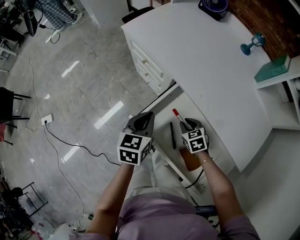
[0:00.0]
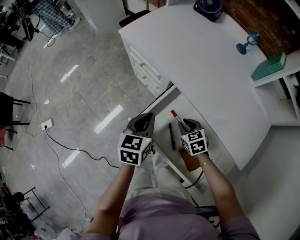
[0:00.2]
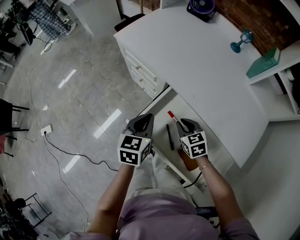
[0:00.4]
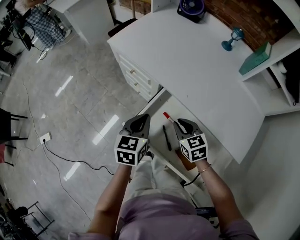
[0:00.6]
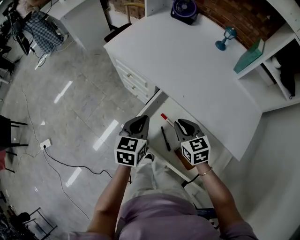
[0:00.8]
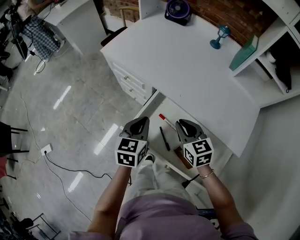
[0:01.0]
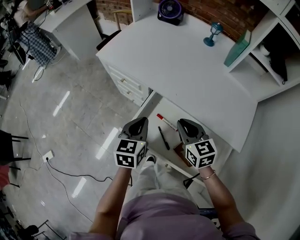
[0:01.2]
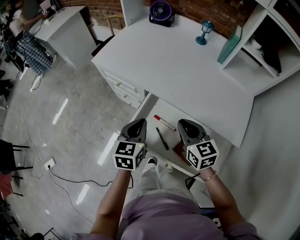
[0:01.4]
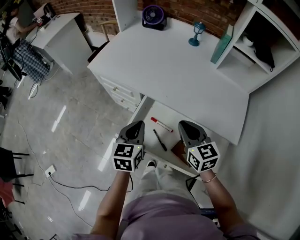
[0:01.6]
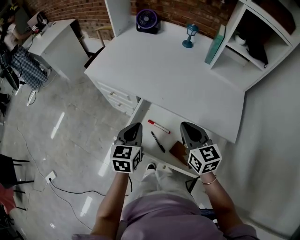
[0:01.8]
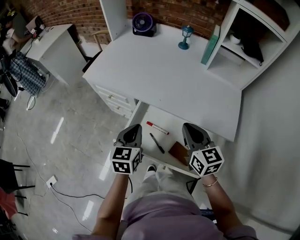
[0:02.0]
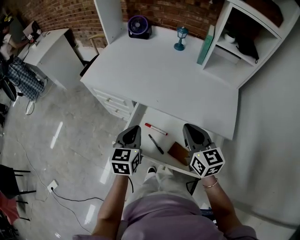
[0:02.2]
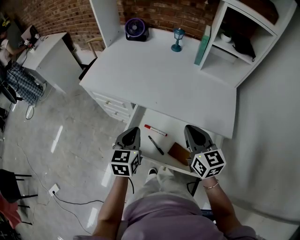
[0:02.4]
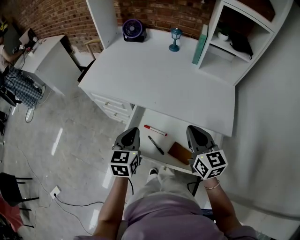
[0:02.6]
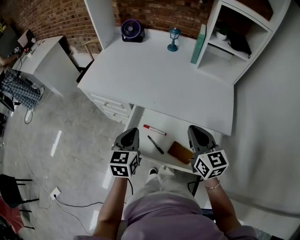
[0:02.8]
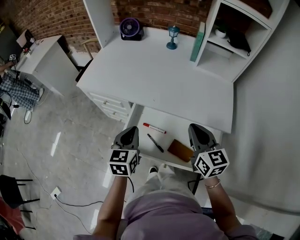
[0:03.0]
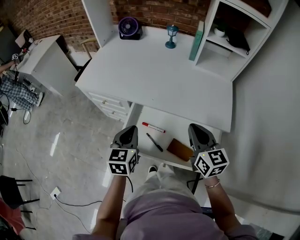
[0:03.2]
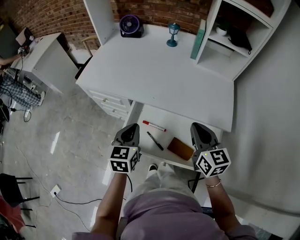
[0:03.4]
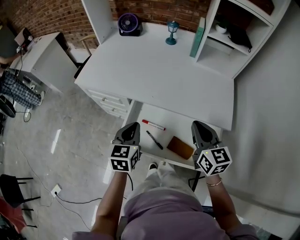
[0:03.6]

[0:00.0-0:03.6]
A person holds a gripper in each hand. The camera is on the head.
0.0 to 1.8 s: The right gripper moves upward, approximately 25 cm, points its fingers approximately 40 degrees further upward, and closes its fingers; the left gripper heads upward and to the right, covering some 10 cm.
1.8 to 3.6 s: The right gripper is displaced to the right by roughly 5 cm.

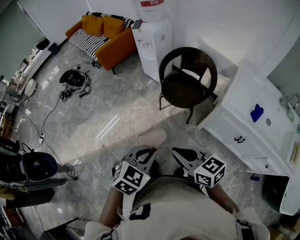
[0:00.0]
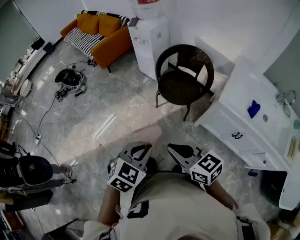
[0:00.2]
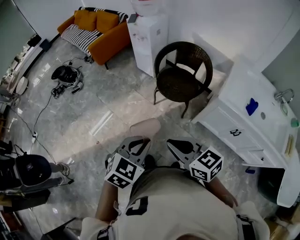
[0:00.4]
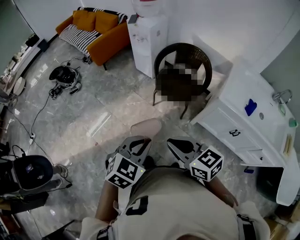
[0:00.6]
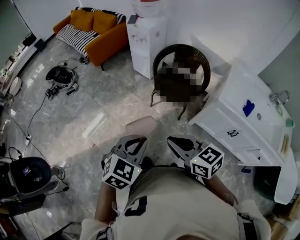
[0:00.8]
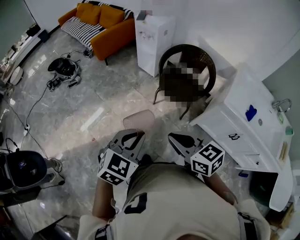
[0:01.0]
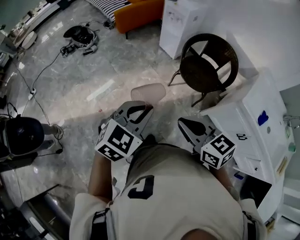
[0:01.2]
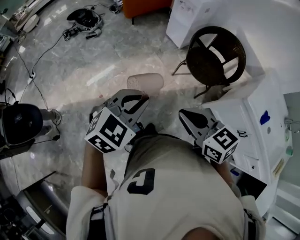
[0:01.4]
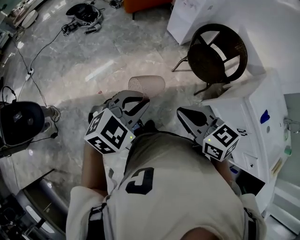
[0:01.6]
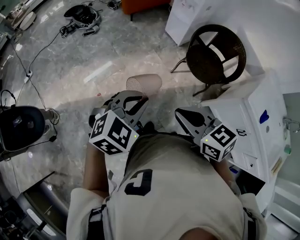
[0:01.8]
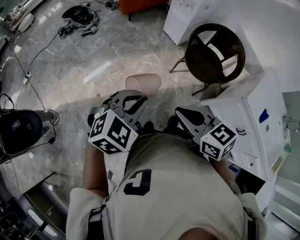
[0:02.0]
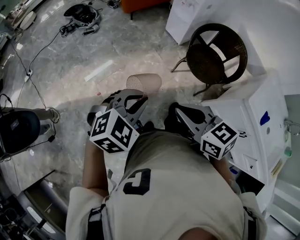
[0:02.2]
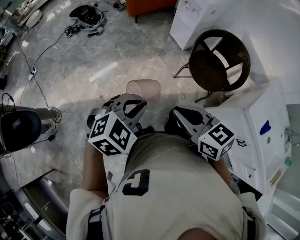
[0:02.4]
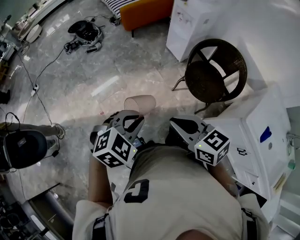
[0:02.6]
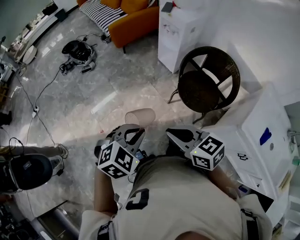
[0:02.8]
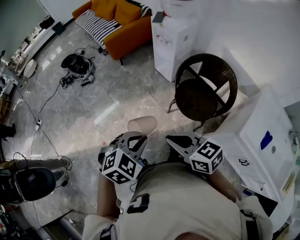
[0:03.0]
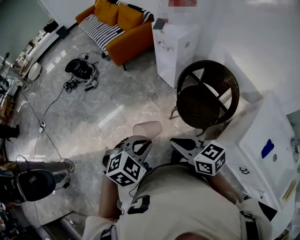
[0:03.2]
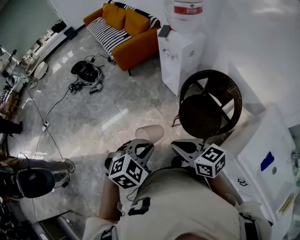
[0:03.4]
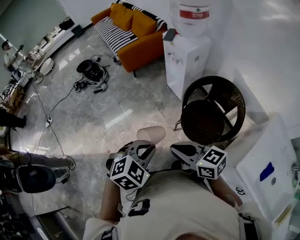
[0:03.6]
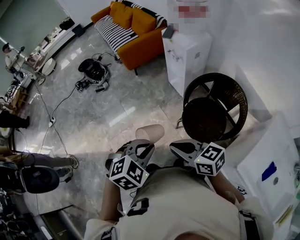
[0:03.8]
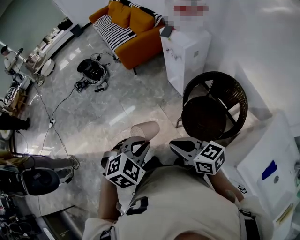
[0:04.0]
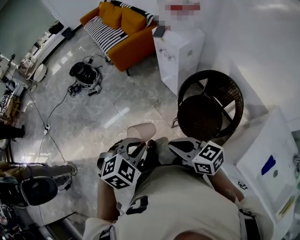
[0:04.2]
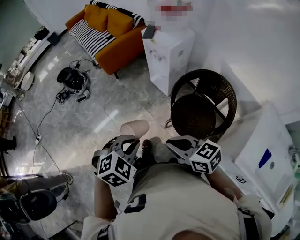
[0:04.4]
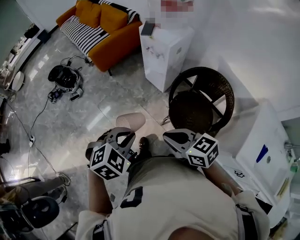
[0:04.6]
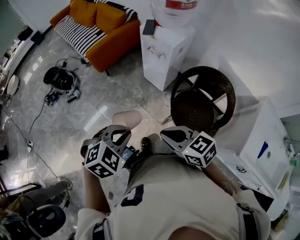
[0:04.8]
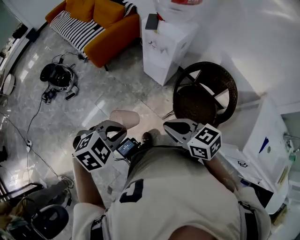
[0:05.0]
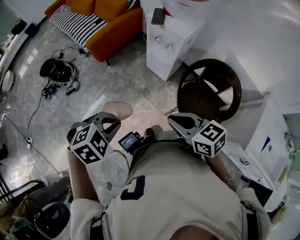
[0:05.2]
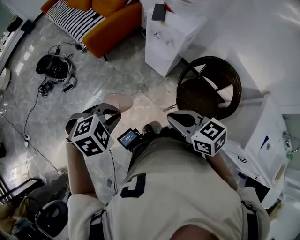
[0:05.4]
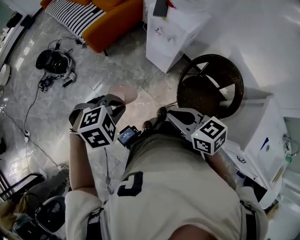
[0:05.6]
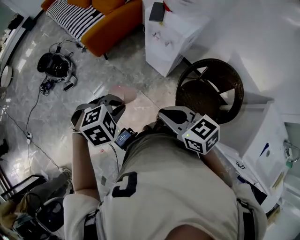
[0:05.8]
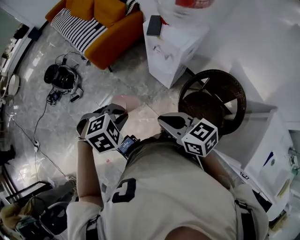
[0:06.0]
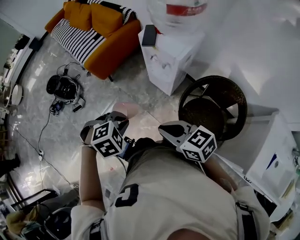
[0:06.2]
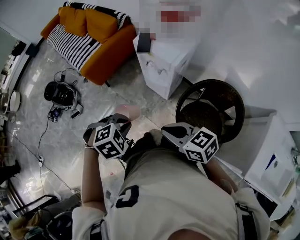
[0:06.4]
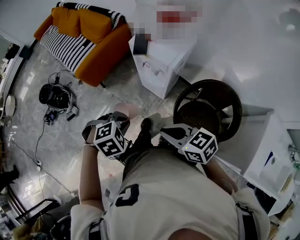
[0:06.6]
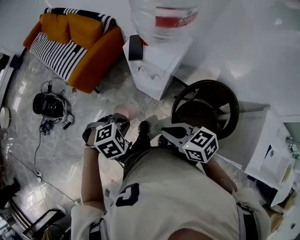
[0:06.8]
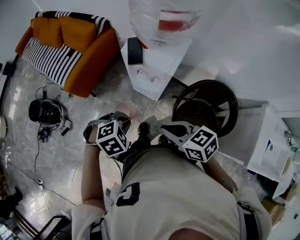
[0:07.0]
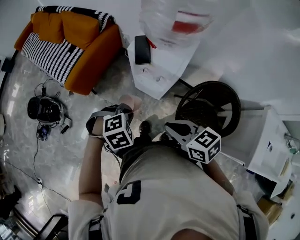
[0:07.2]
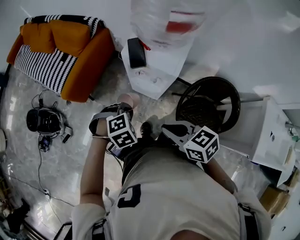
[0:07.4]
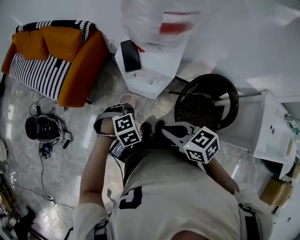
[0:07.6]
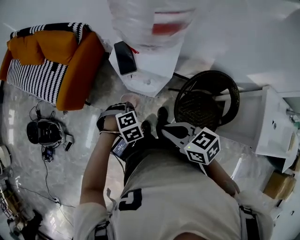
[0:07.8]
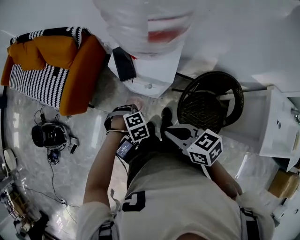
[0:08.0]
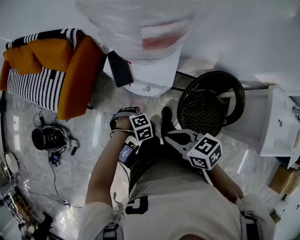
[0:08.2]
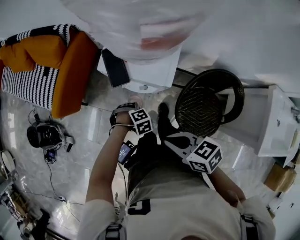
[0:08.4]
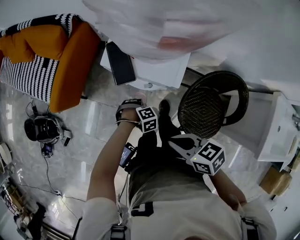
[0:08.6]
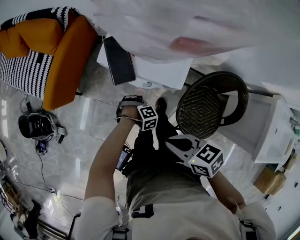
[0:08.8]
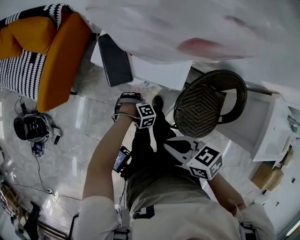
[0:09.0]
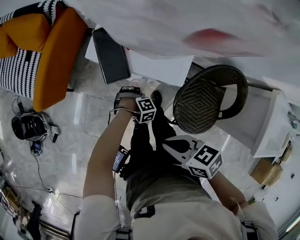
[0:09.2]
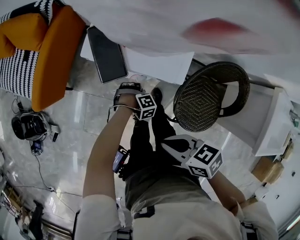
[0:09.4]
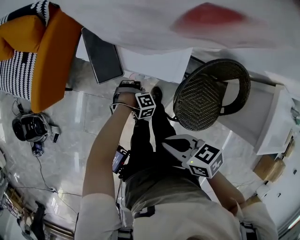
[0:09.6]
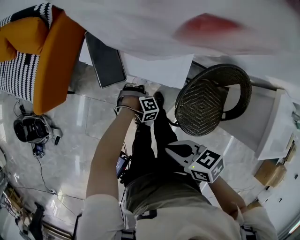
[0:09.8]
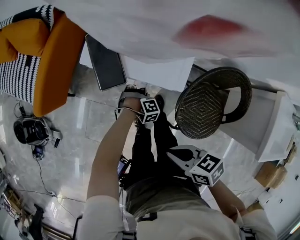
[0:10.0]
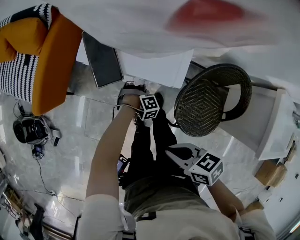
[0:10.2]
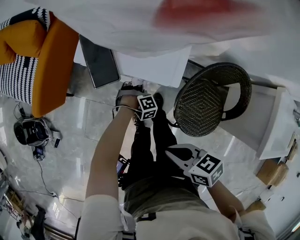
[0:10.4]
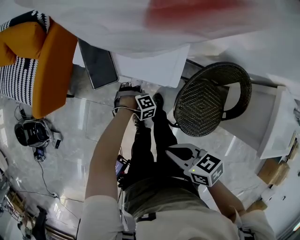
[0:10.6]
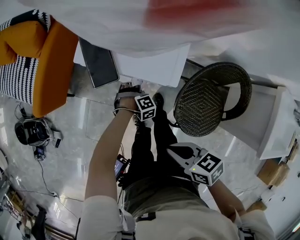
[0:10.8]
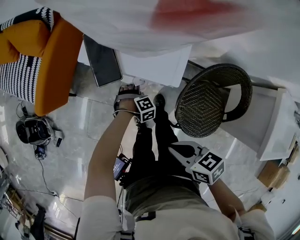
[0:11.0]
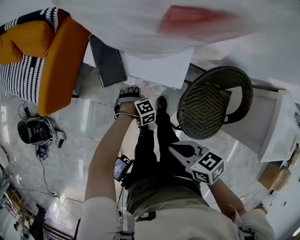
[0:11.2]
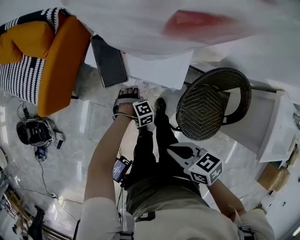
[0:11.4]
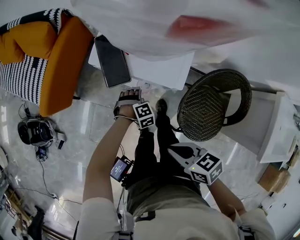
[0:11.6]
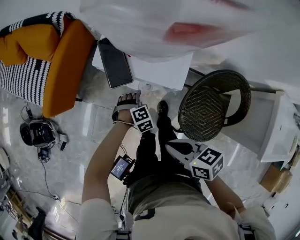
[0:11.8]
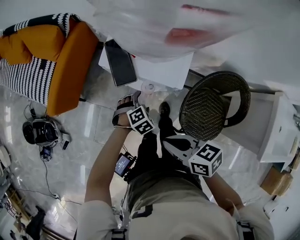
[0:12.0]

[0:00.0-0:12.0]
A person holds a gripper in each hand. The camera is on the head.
0.0 to 1.6 s: Both grippers move to the left, some 20 cm.
1.6 to 3.0 s: The grippers both shift forward and to the right by some 20 cm.
3.0 to 4.4 s: The right gripper goes roughly 15 cm forward and to the right. The left gripper is displaced forward by roughly 15 cm.
4.4 to 6.0 s: The two grippers go approximately 30 cm forward and to the left. The left gripper changes its angle by approximately 20 degrees.
6.0 to 7.6 s: The right gripper heads forward, covering some 20 cm, and swivels approximately 20 degrees, while the left gripper shifts roughly 30 cm forward and downward, and turns by approximately 30 degrees.
7.6 to 9.0 s: The right gripper travels downward by some 10 cm, while the left gripper travels downward by some 30 cm, and changes its angle by approximately 20 degrees.
9.0 to 10.4 s: The right gripper ends up approximately 5 cm from where it was. Meanwhile the left gripper shifts by about 5 cm.
10.4 to 12.0 s: The left gripper goes approximately 15 cm upward, rotates roughly 40 degrees, and opens up; the right gripper shifts by some 10 cm.

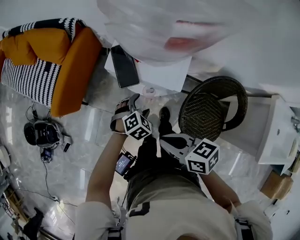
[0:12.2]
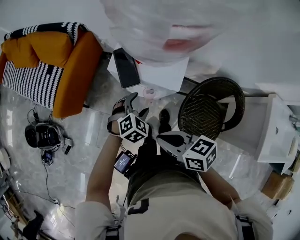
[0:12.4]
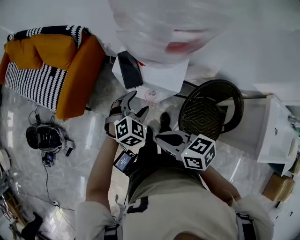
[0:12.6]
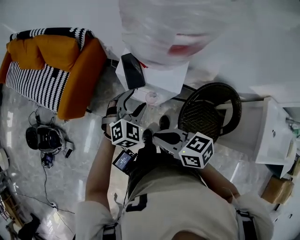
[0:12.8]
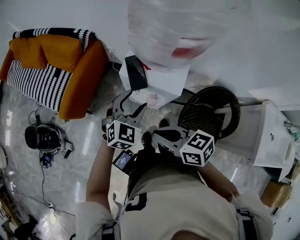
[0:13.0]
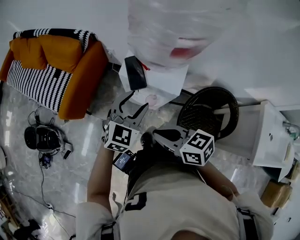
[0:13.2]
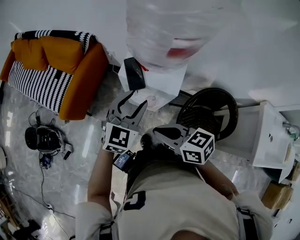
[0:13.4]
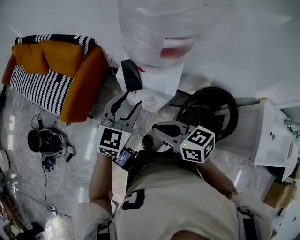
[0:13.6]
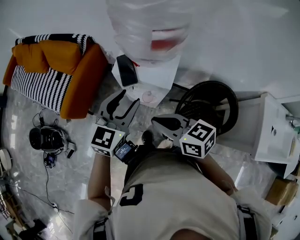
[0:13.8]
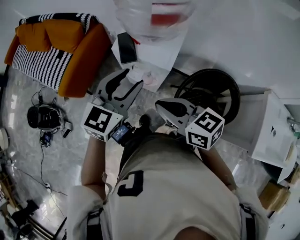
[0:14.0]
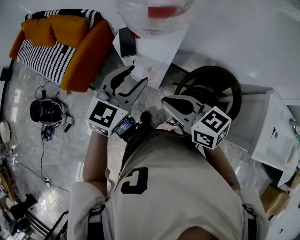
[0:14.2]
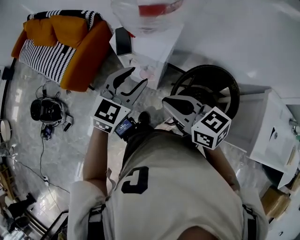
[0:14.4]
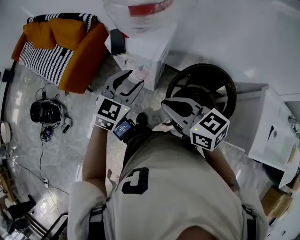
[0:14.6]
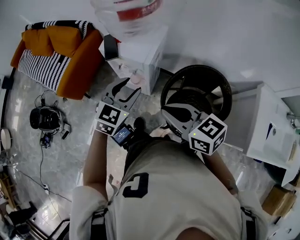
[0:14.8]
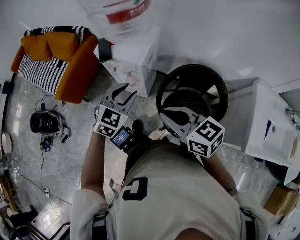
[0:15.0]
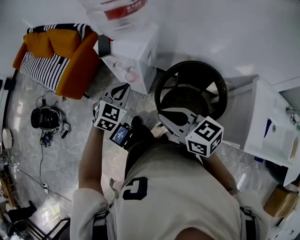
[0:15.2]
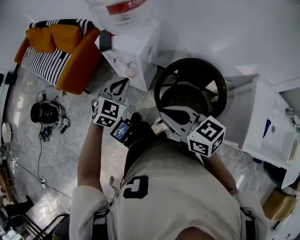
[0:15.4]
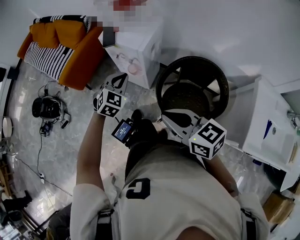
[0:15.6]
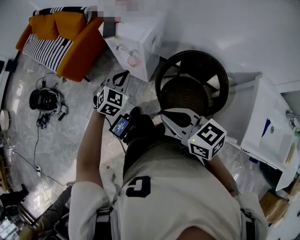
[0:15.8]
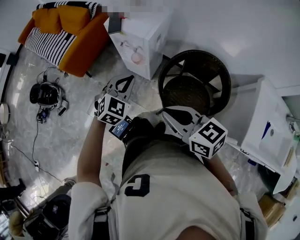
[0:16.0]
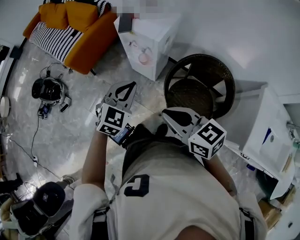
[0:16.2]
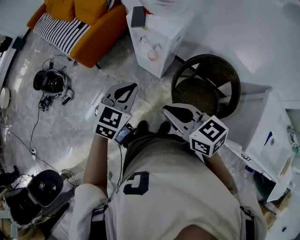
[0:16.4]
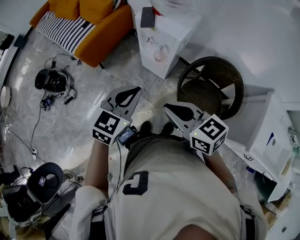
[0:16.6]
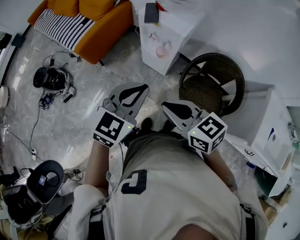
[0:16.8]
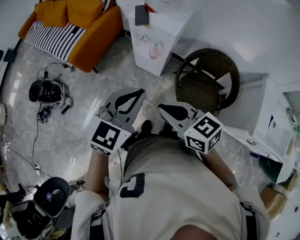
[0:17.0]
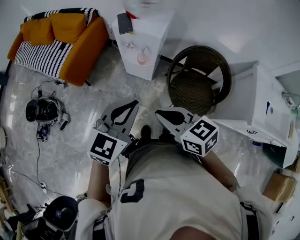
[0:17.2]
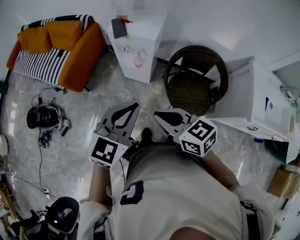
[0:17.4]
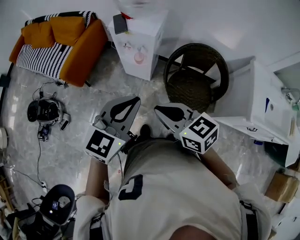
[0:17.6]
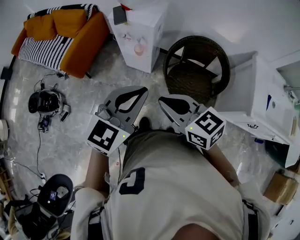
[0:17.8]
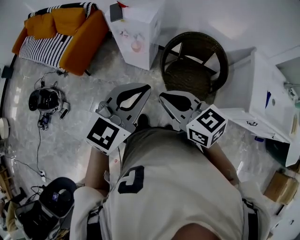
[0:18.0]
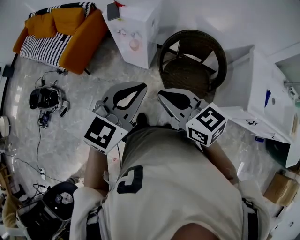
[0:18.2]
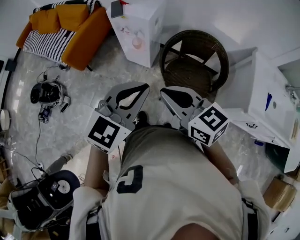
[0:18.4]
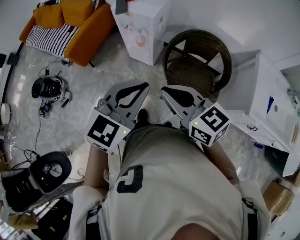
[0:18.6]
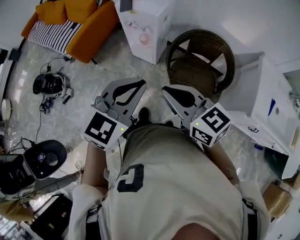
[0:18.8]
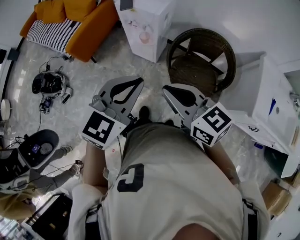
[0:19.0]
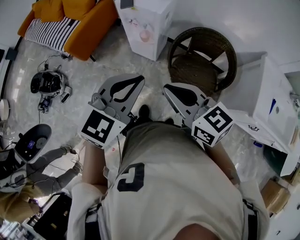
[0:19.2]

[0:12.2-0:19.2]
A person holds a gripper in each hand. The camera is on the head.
12.2 to 13.6 s: The left gripper heads upward, covering roughly 30 cm, and tilts its fingers about 40 degrees upward; the right gripper is displaced upward by some 10 cm.
13.6 to 15.0 s: The left gripper is displaced backward and to the right by about 20 cm. The right gripper moves to the right and backward, some 25 cm.
15.0 to 16.4 s: The grippers both shift to the left and backward by roughly 15 cm. The left gripper closes its fingers.
16.4 to 17.8 s: The left gripper moves backward and upward, some 15 cm, and swivels about 30 degrees. Meanwhile the right gripper is displaced backward by about 10 cm, and reaches roughly 10 cm to the left, then returns.

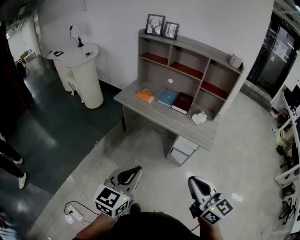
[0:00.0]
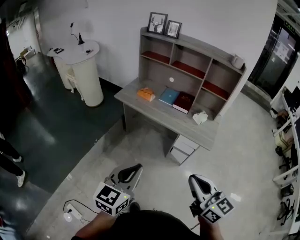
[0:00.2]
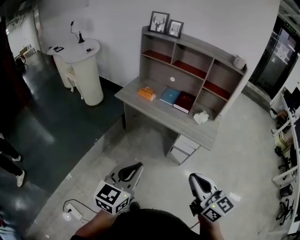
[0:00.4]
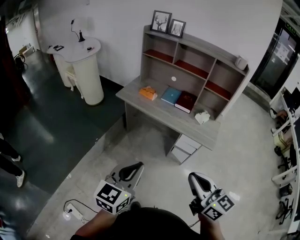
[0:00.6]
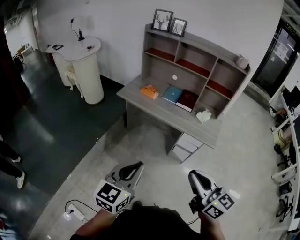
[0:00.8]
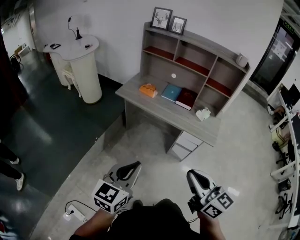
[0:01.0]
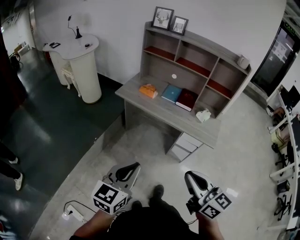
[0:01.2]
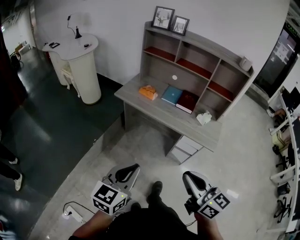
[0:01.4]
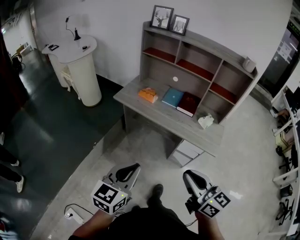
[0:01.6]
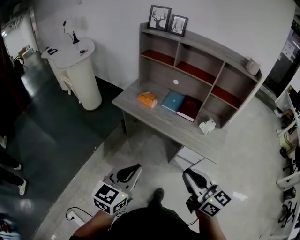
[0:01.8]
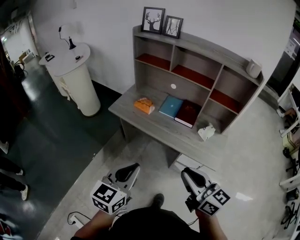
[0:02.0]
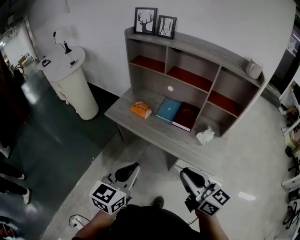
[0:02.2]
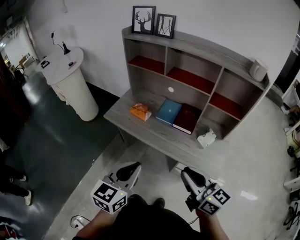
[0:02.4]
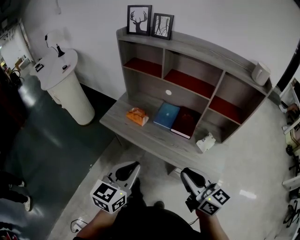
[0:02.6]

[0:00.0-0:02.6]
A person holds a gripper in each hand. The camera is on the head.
0.0 to 1.2 s: The two grippers go about 10 cm to the left.
1.2 to 2.6 s: Both grippers travel together forward, roughly 30 cm.
